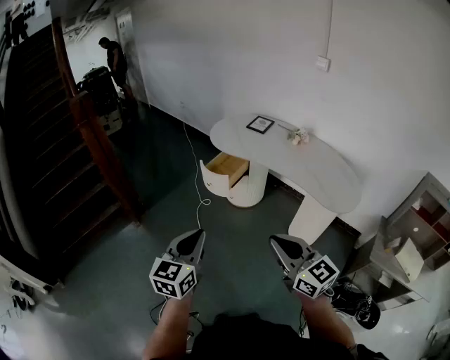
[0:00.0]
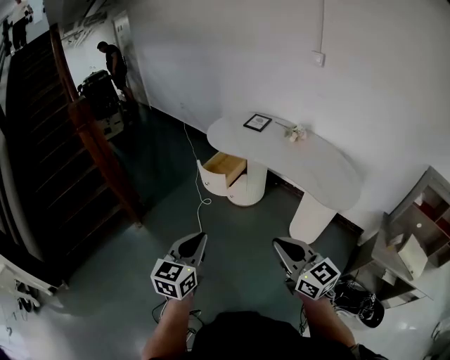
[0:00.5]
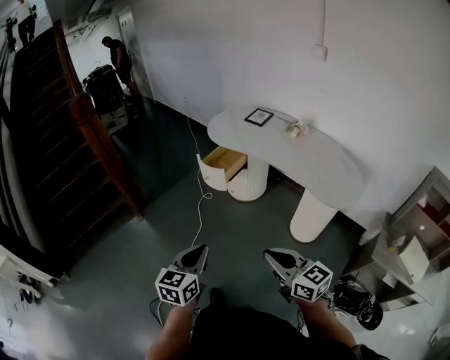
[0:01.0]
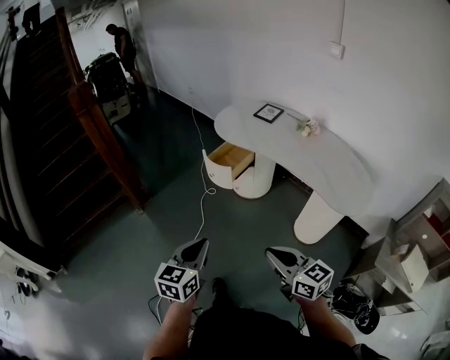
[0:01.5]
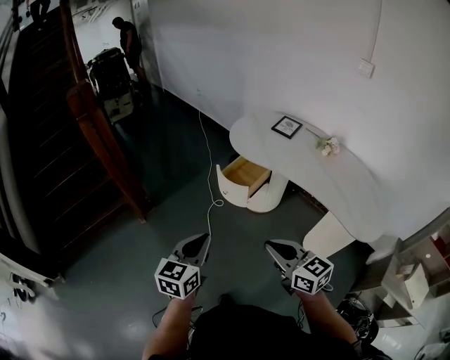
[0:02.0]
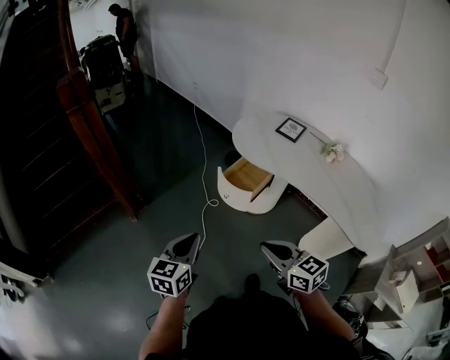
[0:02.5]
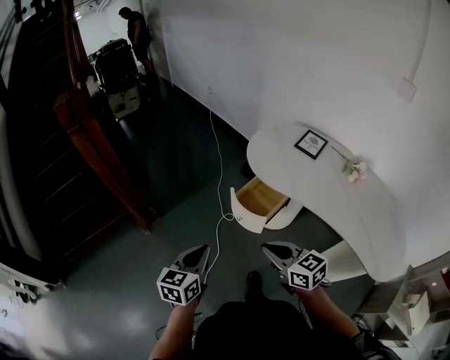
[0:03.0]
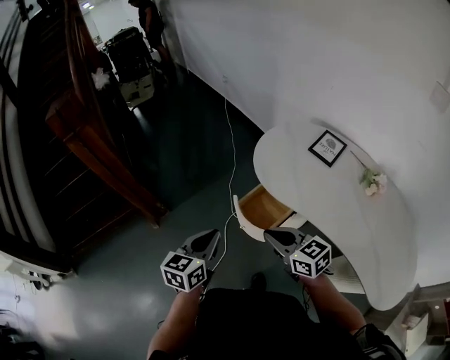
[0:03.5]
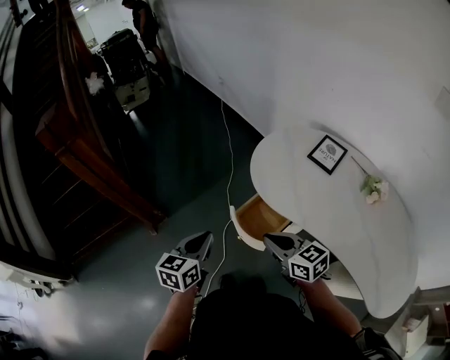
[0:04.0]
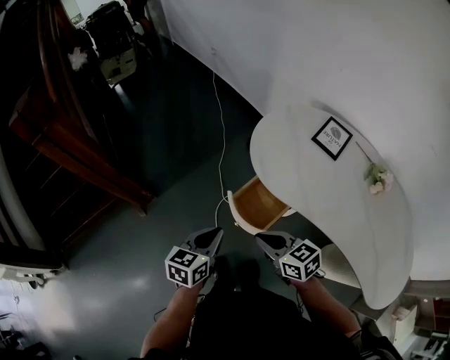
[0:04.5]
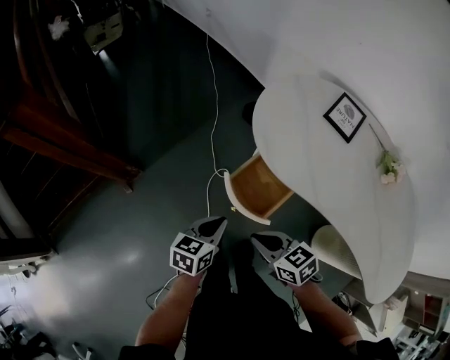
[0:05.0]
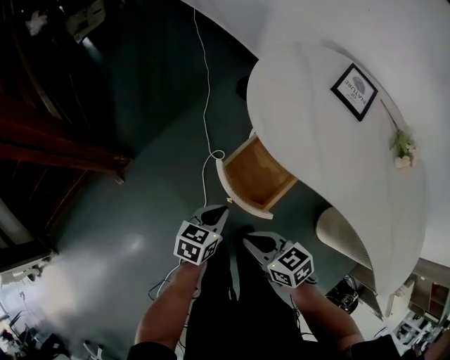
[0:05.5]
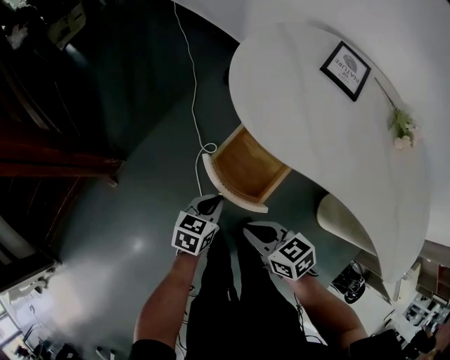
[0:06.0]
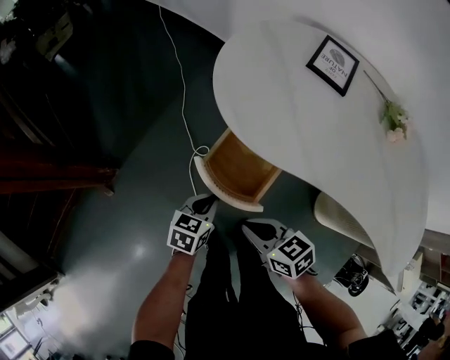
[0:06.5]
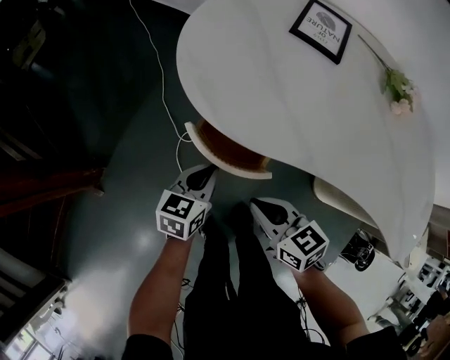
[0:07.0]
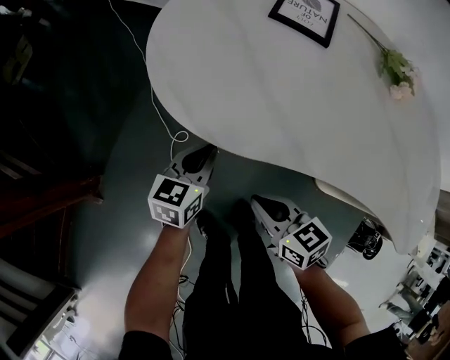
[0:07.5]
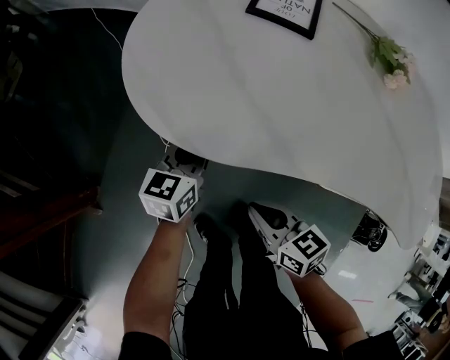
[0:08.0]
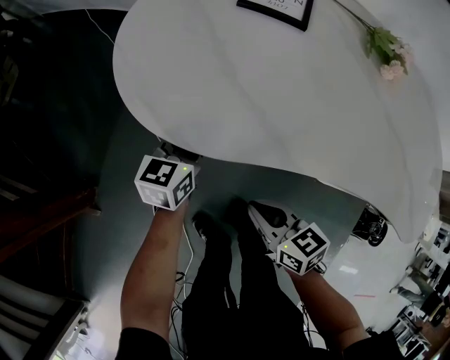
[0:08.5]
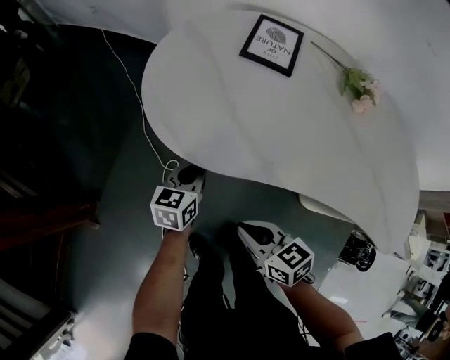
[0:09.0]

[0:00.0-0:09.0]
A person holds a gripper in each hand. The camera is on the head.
0:00.0 to 0:02.0: The right gripper travels forward and downward by some 20 cm. Meanwhile the left gripper is displaced forward by approximately 20 cm.
0:02.0 to 0:04.5: Both grippers are carried forward, some 40 cm. The right gripper changes its angle by roughly 20 degrees.
0:04.5 to 0:07.0: The right gripper is displaced downward and to the right by about 20 cm, and turns by approximately 20 degrees. The left gripper shifts about 30 cm downward, to the right and forward, and rotates roughly 20 degrees.
0:07.0 to 0:09.0: The left gripper goes some 10 cm forward and to the right.

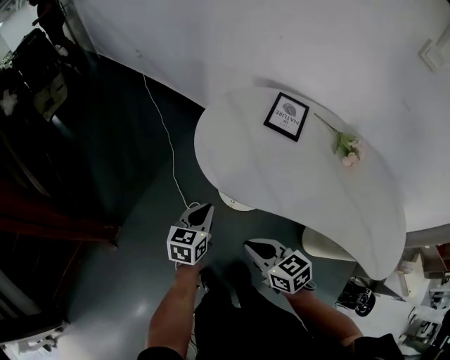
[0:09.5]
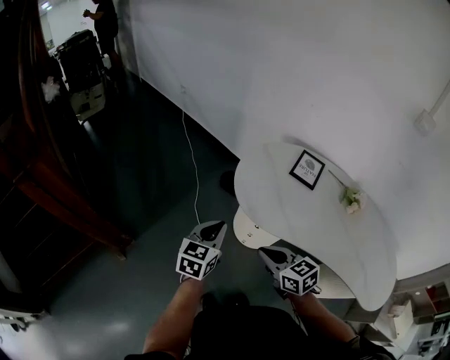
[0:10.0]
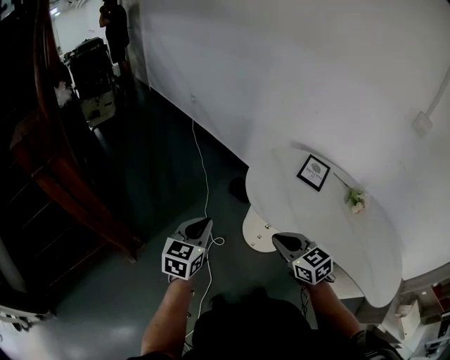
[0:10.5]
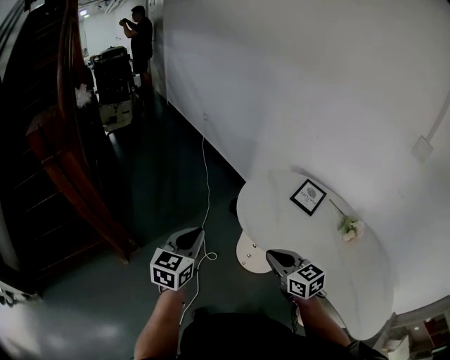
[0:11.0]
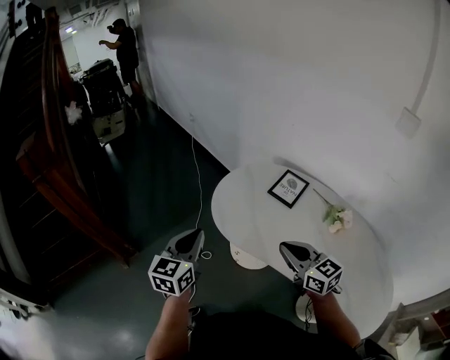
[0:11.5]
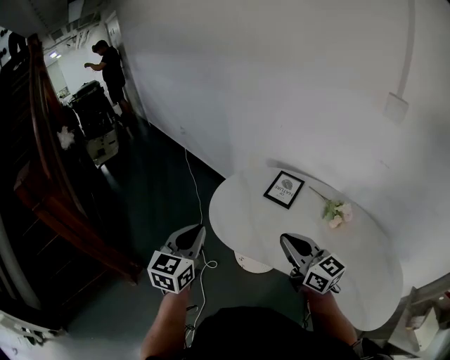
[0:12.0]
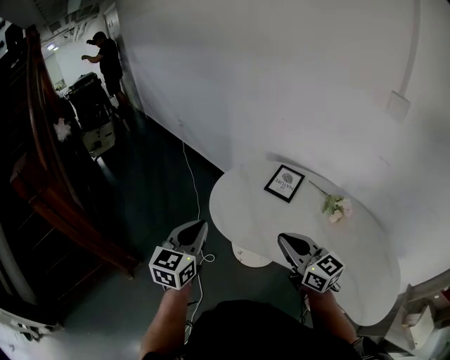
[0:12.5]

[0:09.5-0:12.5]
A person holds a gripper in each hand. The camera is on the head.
0:09.5 to 0:11.0: The left gripper goes roughly 30 cm upward and to the left, and swivels some 20 degrees. The right gripper goes approximately 15 cm upward.
0:11.0 to 0:12.5: The left gripper heads to the right, covering about 15 cm, while the right gripper is displaced to the right and upward by about 20 cm, and turns by roughly 20 degrees.

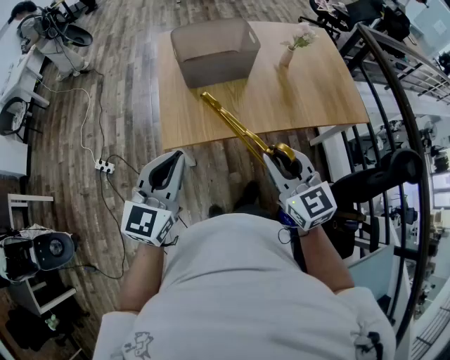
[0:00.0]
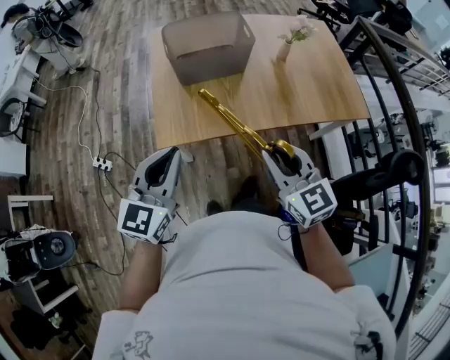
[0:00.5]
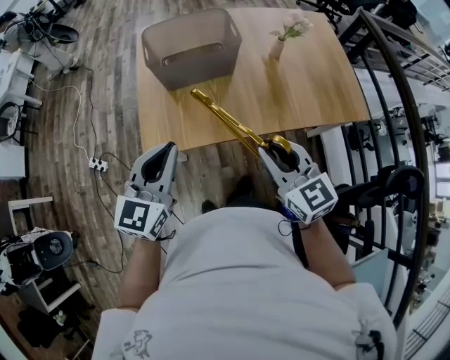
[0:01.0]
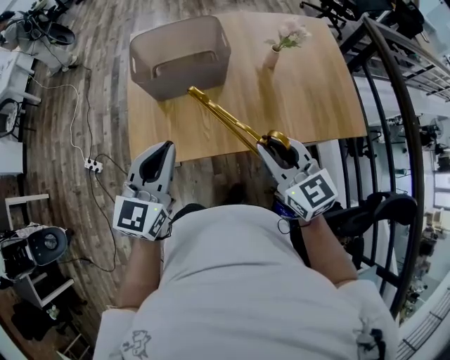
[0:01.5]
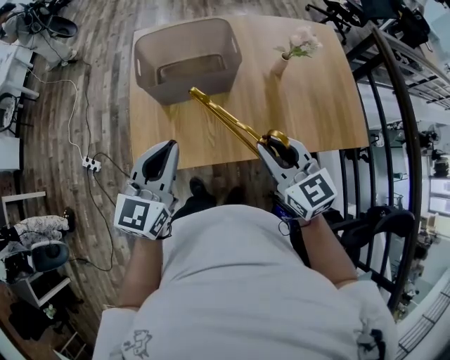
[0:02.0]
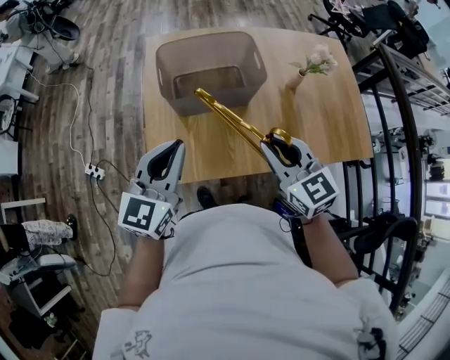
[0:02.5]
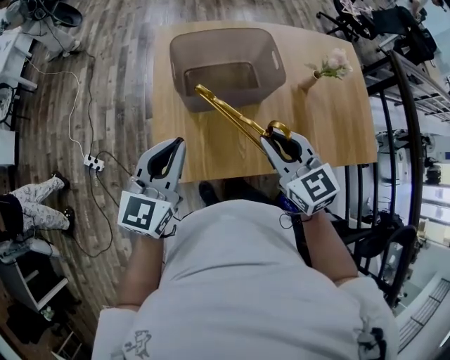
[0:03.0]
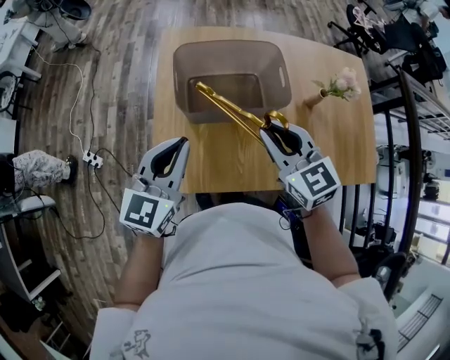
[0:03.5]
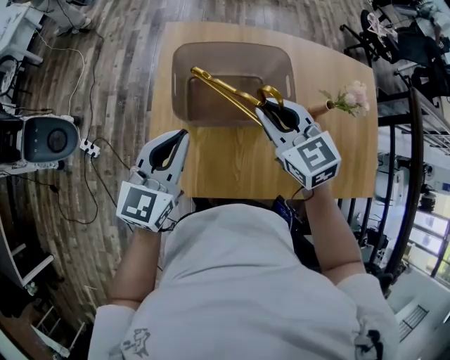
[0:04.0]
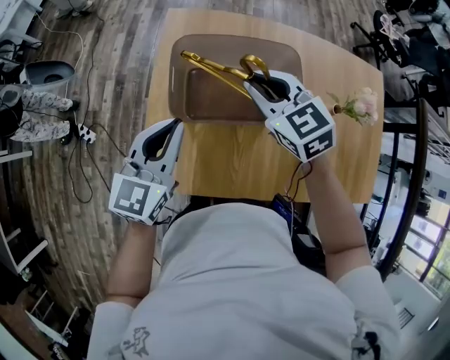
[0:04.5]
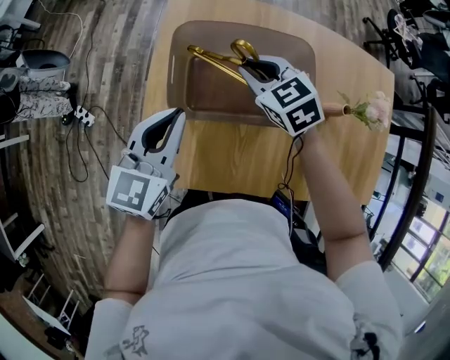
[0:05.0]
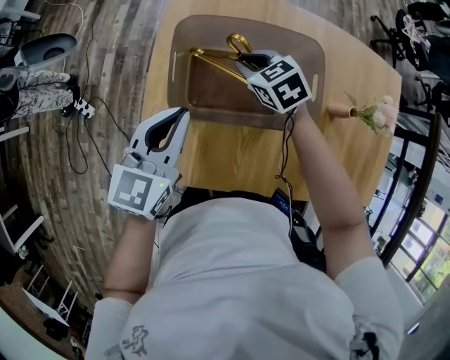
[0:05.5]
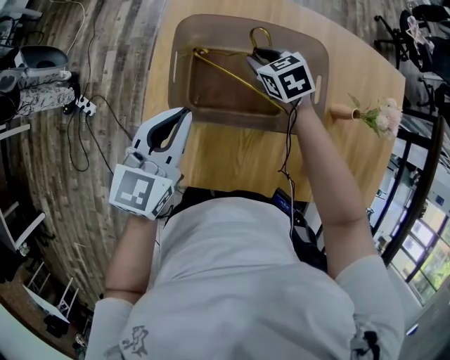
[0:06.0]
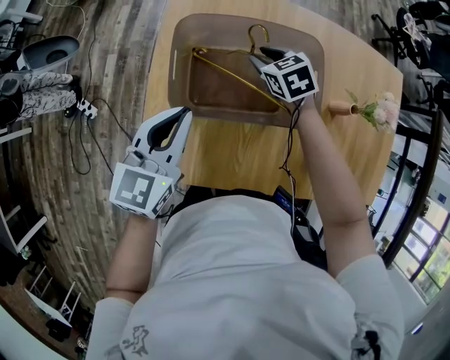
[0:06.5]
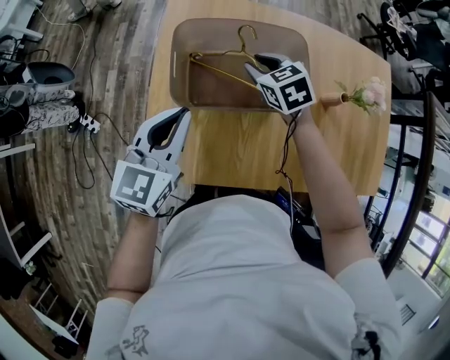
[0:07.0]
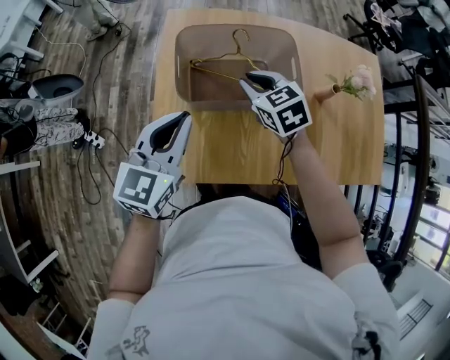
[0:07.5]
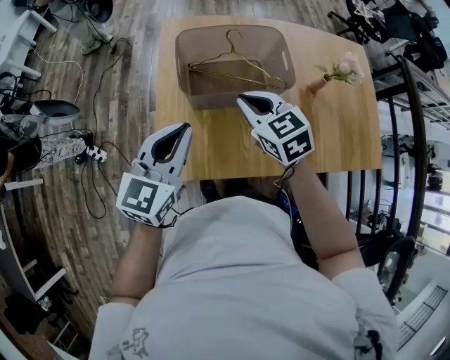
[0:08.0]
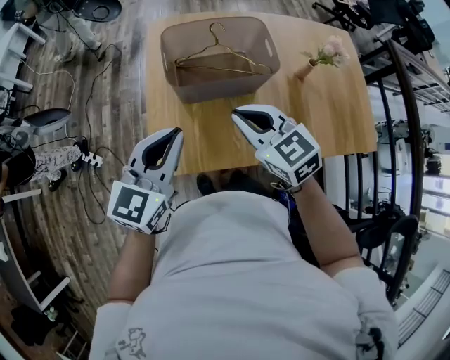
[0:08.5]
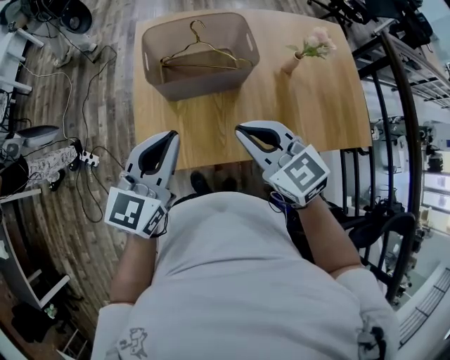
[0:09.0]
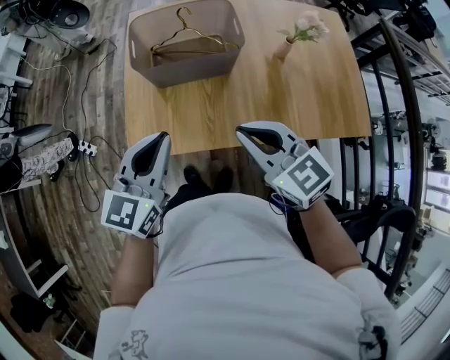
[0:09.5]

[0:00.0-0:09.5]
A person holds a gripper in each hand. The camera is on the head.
0:00.0 to 0:02.0: The two grippers go about 25 cm forward and to the right.
0:02.0 to 0:04.0: Both grippers move forward and to the left, some 25 cm.
0:04.0 to 0:05.5: The left gripper heads forward and downward, covering approximately 10 cm. Meanwhile the right gripper moves downward and forward, some 25 cm, and turns by about 30 degrees.
0:05.5 to 0:07.5: Both grippers move backward and upward, about 10 cm.
0:07.5 to 0:09.5: The right gripper travels backward by approximately 30 cm, and swivels roughly 20 degrees; the left gripper shifts roughly 20 cm backward.

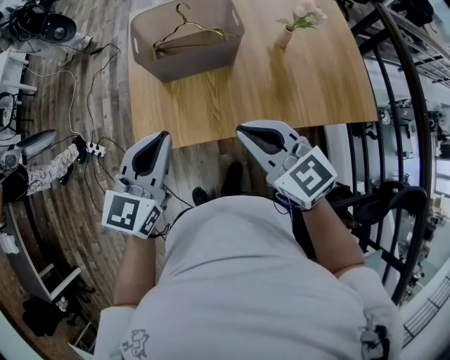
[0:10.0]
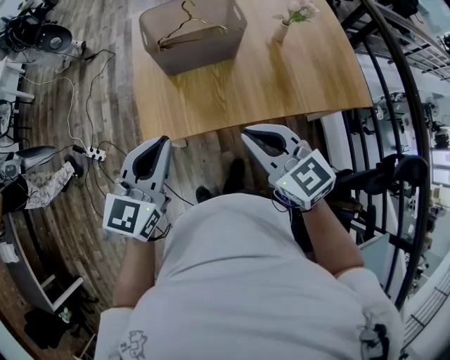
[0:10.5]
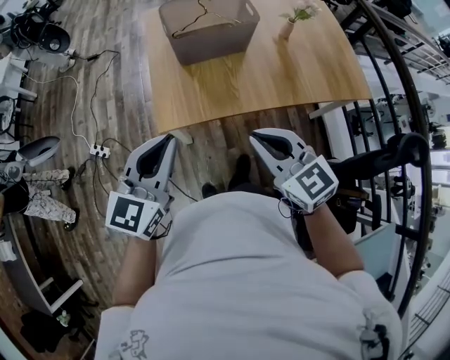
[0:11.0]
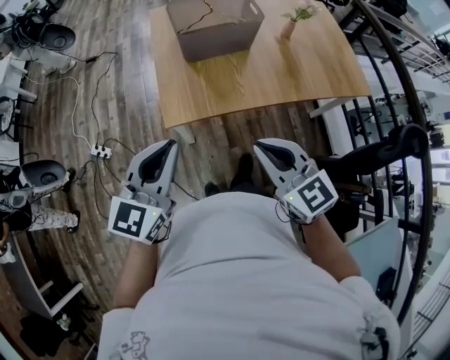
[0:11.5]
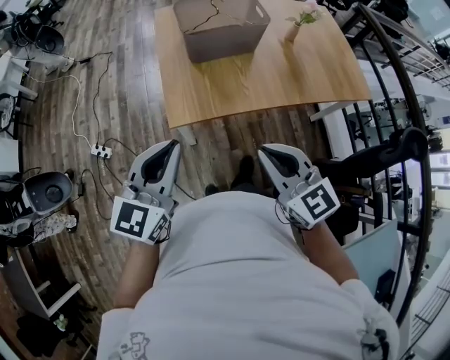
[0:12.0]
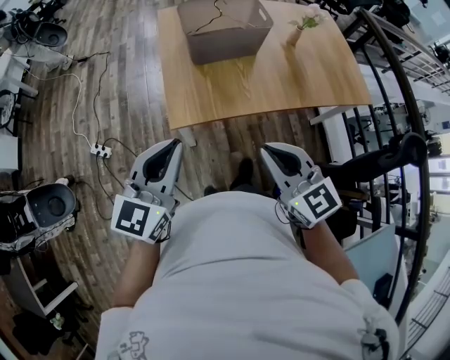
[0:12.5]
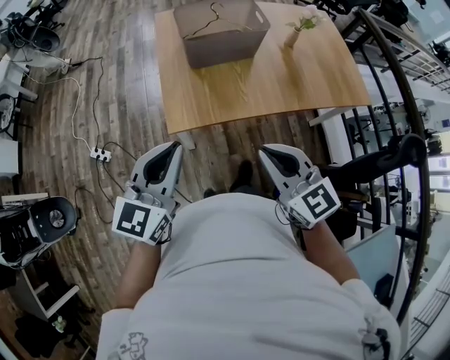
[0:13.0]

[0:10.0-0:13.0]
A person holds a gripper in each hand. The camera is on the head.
0:10.0 to 0:11.5: The grippers both shift backward and to the left by about 20 cm.
0:11.5 to 0:13.0: The grippers make only small movements.

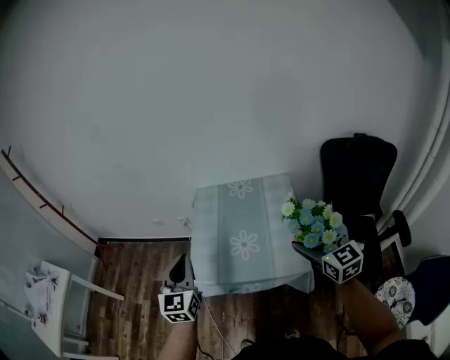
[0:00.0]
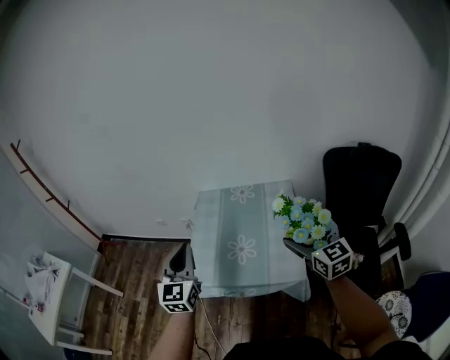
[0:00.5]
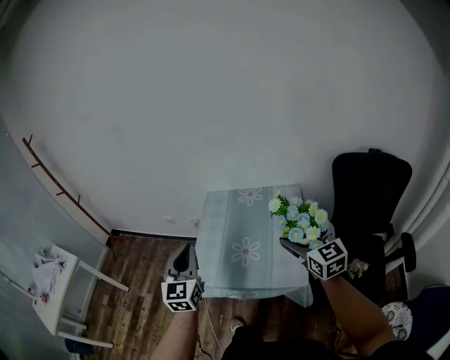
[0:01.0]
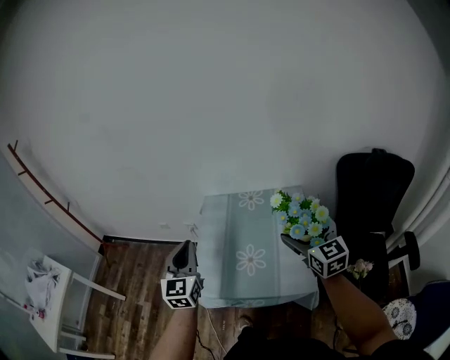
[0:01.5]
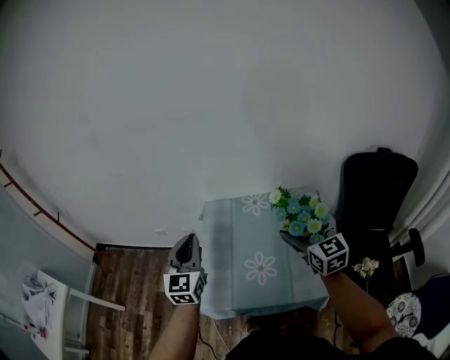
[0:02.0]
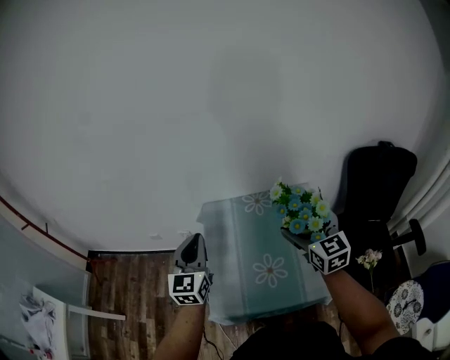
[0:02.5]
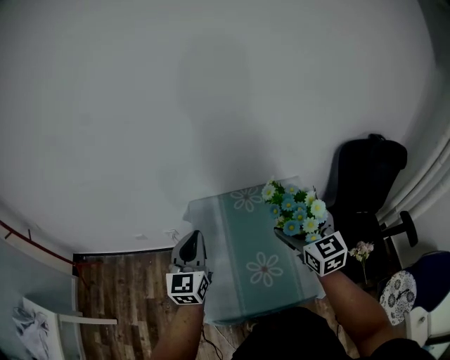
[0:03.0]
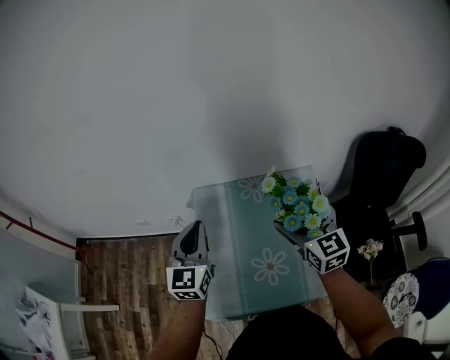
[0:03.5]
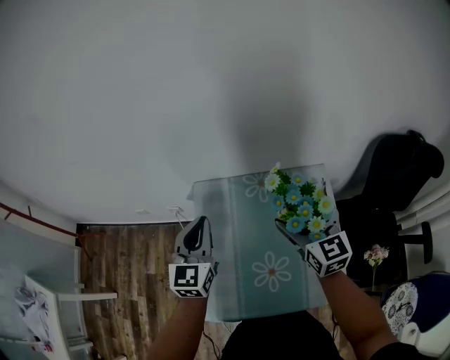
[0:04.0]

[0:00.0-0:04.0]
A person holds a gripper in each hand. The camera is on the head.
0:00.0 to 0:02.0: Both grippers travel together forward, approximately 20 cm.
0:02.0 to 0:04.0: The right gripper heads forward, downward and to the left, covering approximately 20 cm, while the left gripper is displaced forward and downward by roughly 20 cm.
